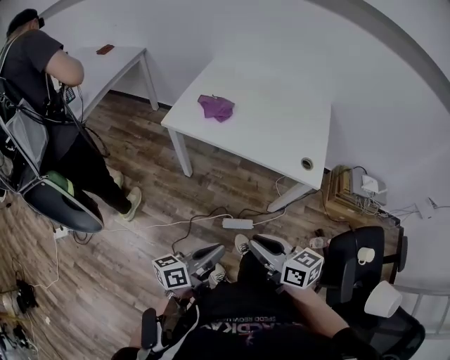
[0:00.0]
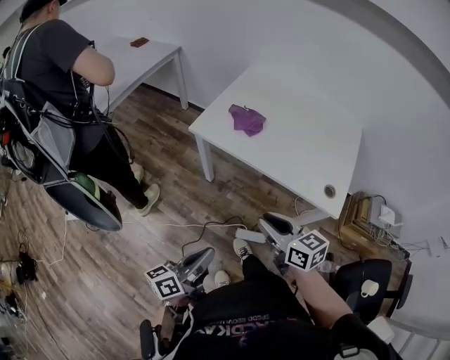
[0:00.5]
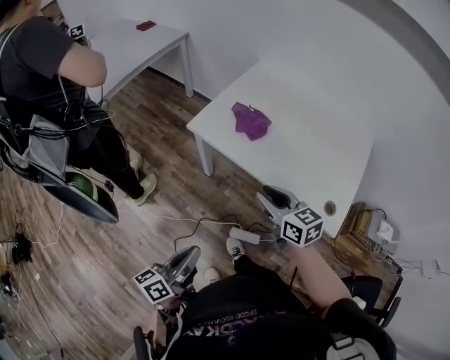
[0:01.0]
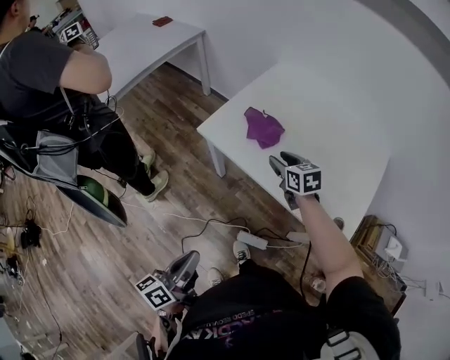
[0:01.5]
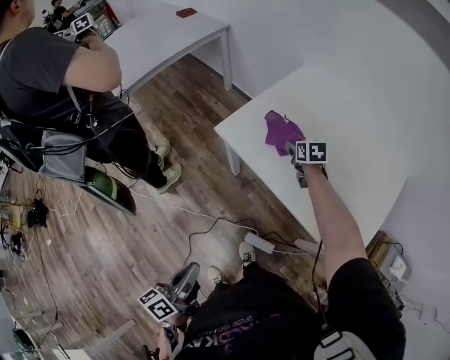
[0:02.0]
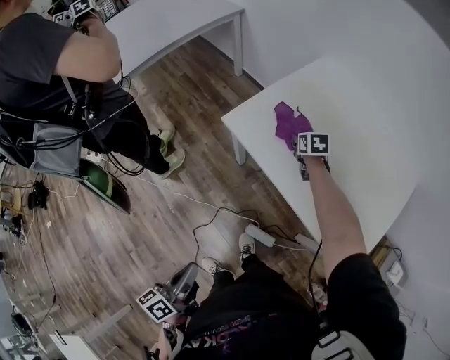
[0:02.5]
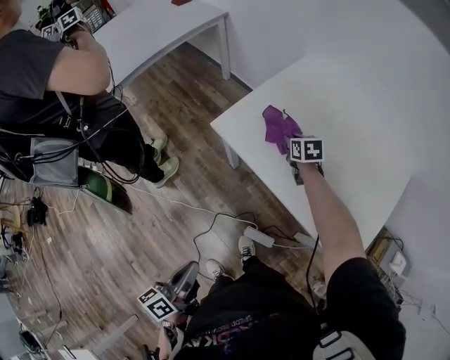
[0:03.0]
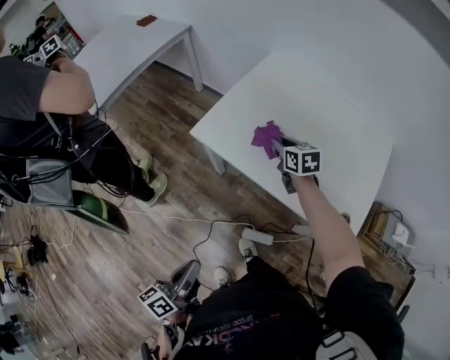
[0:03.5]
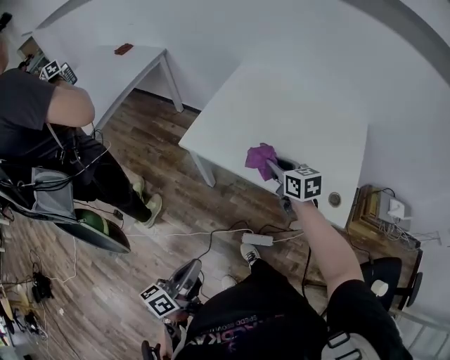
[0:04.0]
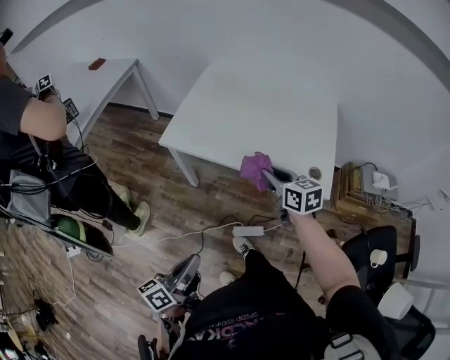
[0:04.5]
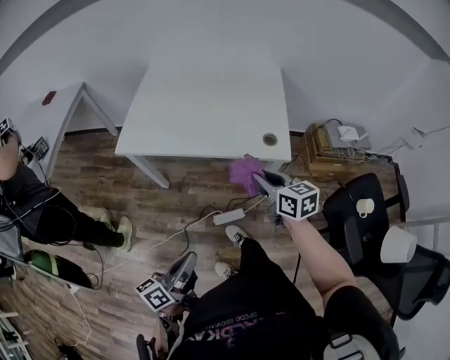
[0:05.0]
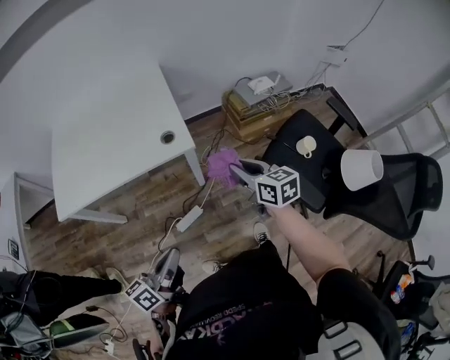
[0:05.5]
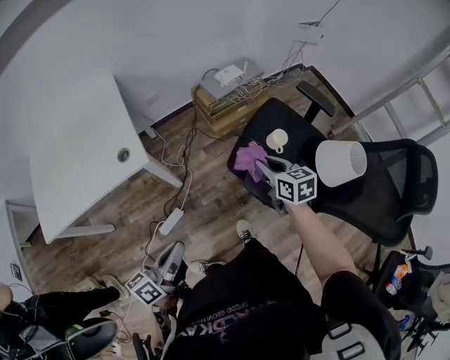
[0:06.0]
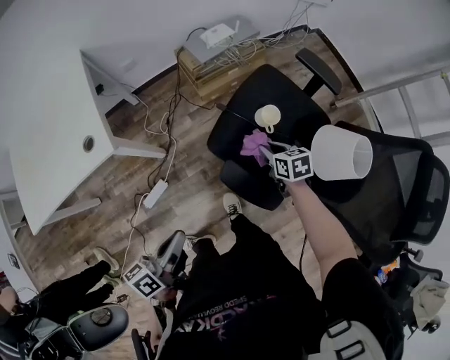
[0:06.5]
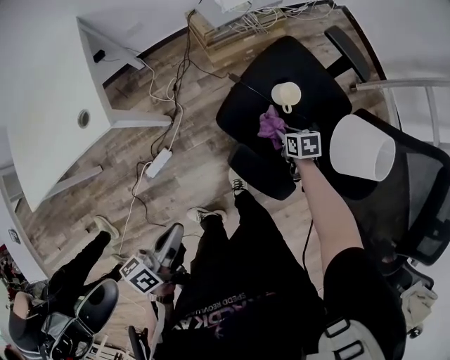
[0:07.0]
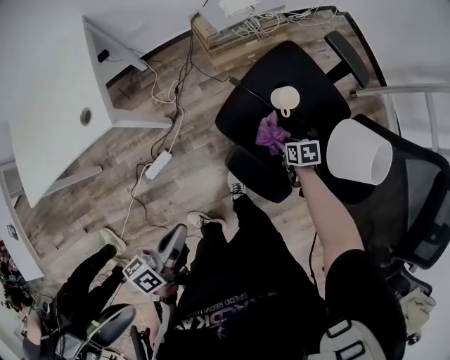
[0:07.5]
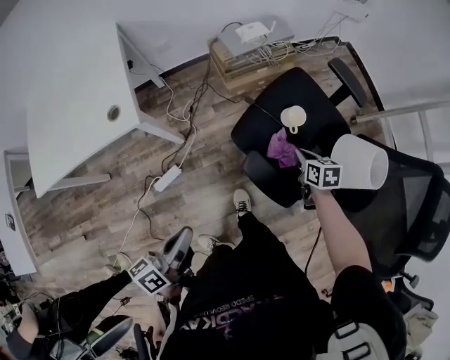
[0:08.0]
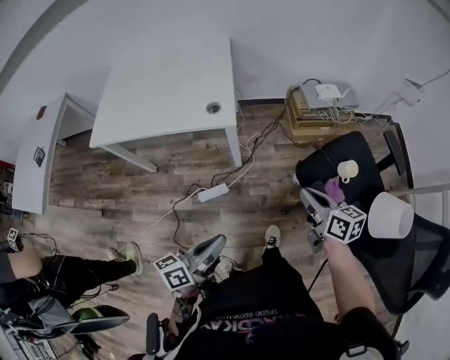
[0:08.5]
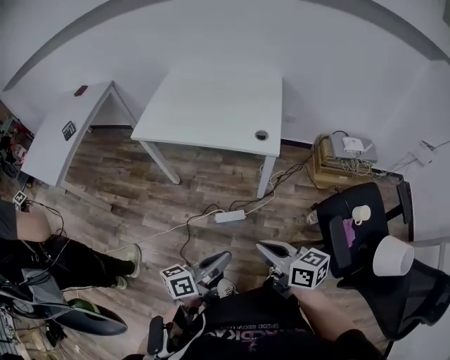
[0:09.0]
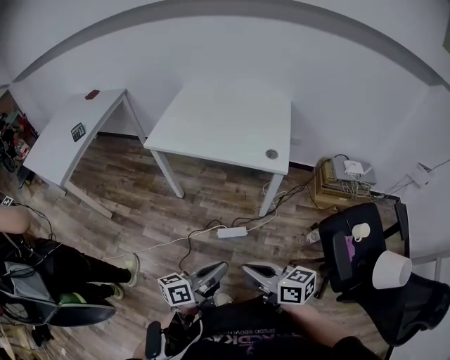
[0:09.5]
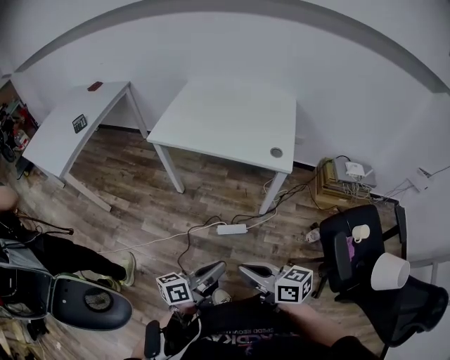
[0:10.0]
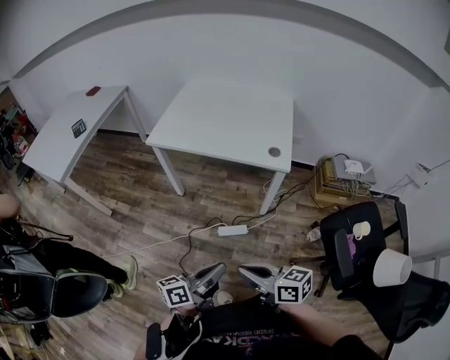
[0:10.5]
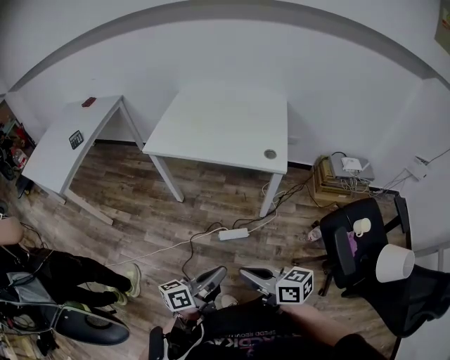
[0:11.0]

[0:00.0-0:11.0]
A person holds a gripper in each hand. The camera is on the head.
0:00.0 to 0:02.0: The right gripper travels forward by about 60 cm, turns by some 30 degrees, and opens up, while the left gripper goes some 15 cm forward and to the left, and swivels some 50 degrees.
0:02.0 to 0:03.5: The right gripper heads backward and upward, covering some 10 cm, and closes.
0:03.5 to 0:05.5: The right gripper changes place by roughly 60 cm, and rotates approximately 50 degrees, while the left gripper moves some 25 cm, and turns by roughly 60 degrees.
0:05.5 to 0:07.5: The right gripper is displaced to the right and downward by approximately 50 cm, tips its fingers downward by some 40 degrees, and opens up, while the left gripper is displaced to the right by some 30 cm.
0:07.5 to 0:09.0: The right gripper moves approximately 60 cm, tips its fingers upward by some 50 degrees, and closes up. The left gripper ends up about 25 cm from where it was, and changes its angle by approximately 30 degrees.
0:09.0 to 0:11.0: The left gripper moves to the left, some 10 cm, while the right gripper goes some 10 cm to the left and backward.

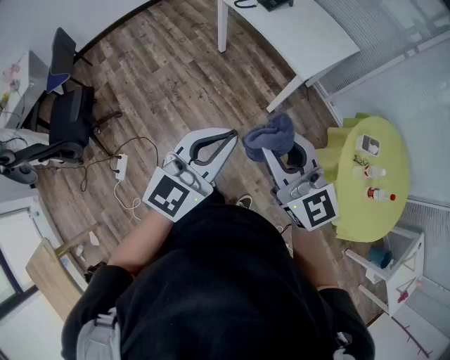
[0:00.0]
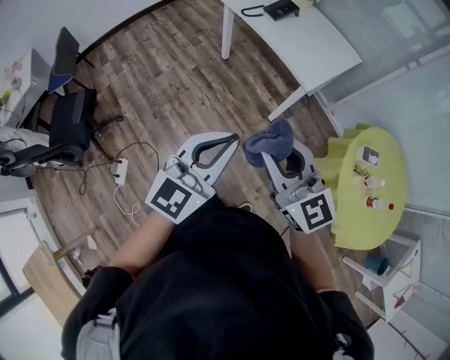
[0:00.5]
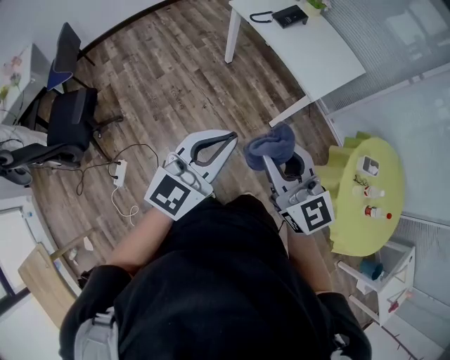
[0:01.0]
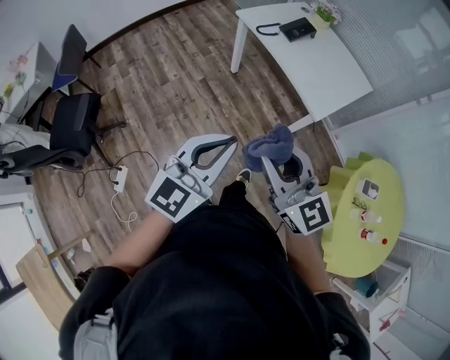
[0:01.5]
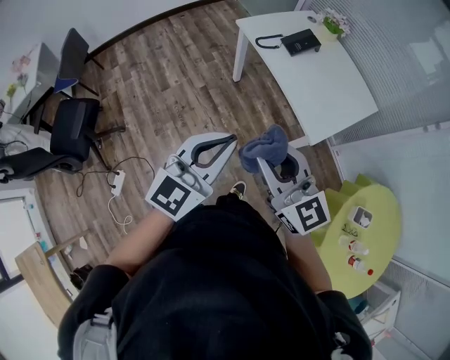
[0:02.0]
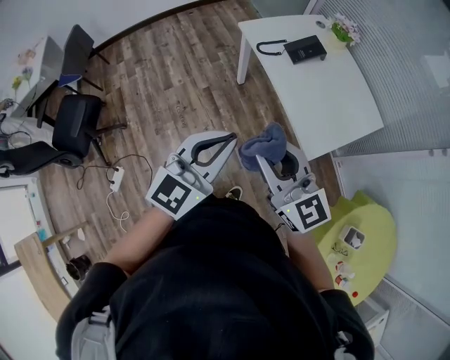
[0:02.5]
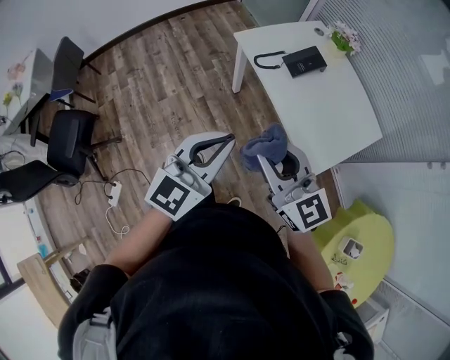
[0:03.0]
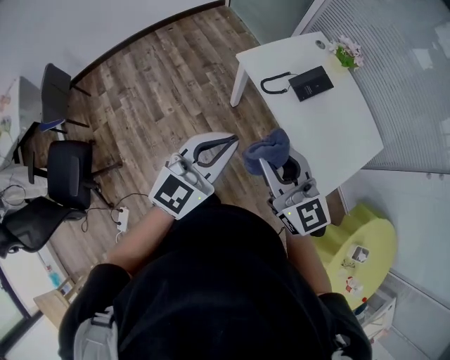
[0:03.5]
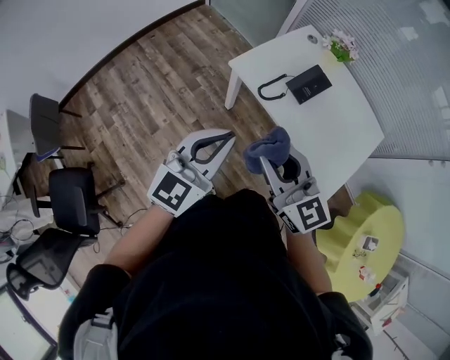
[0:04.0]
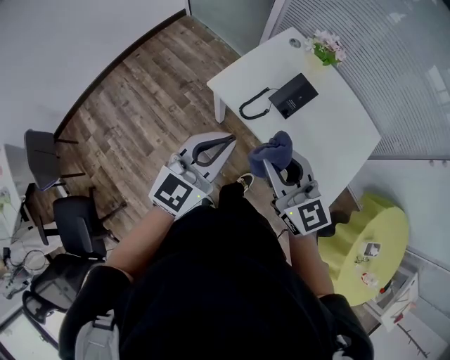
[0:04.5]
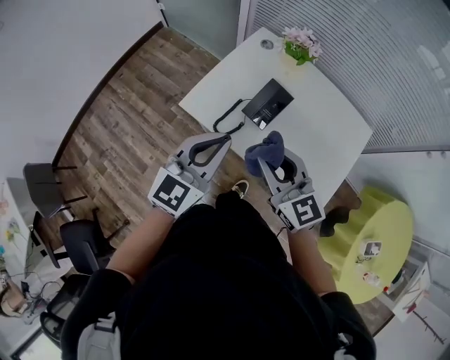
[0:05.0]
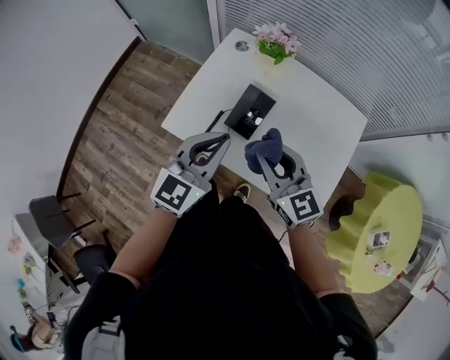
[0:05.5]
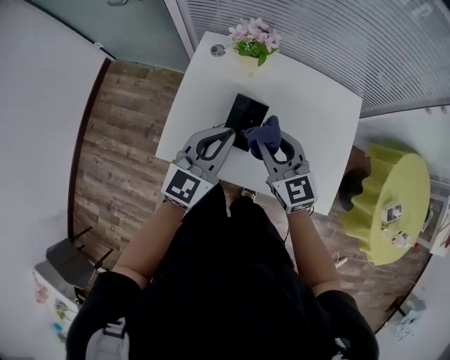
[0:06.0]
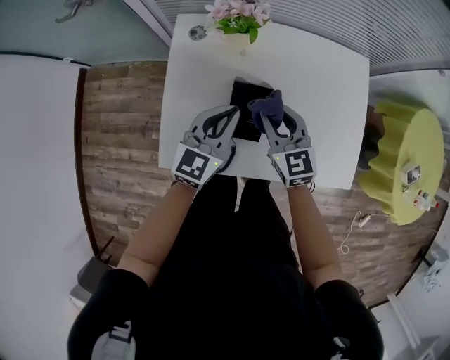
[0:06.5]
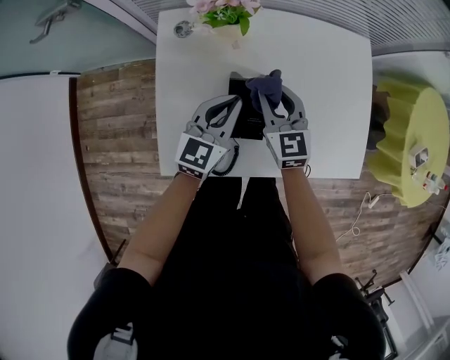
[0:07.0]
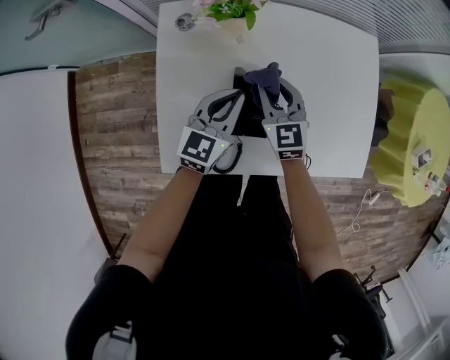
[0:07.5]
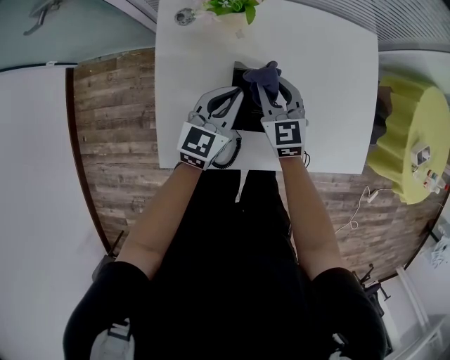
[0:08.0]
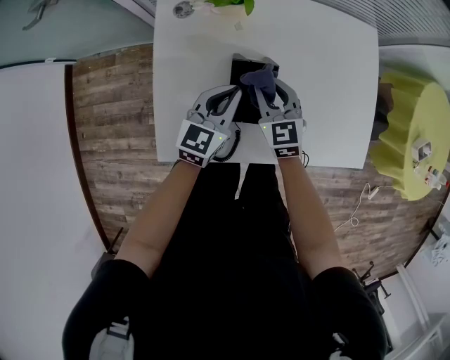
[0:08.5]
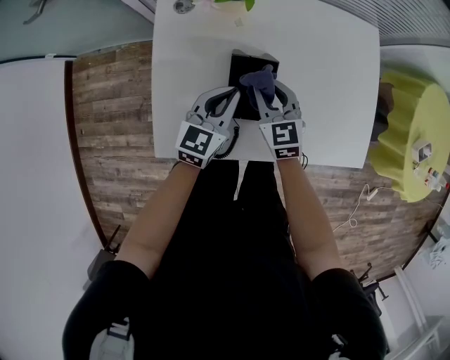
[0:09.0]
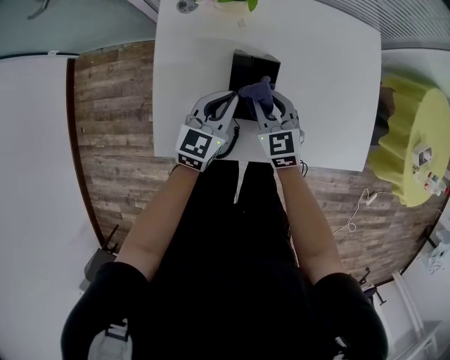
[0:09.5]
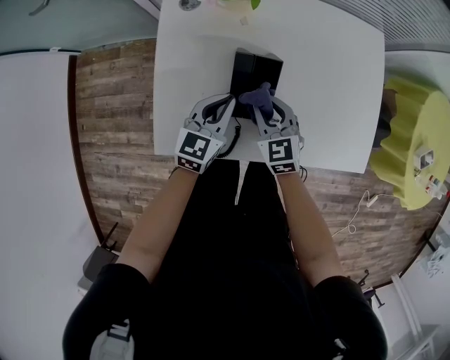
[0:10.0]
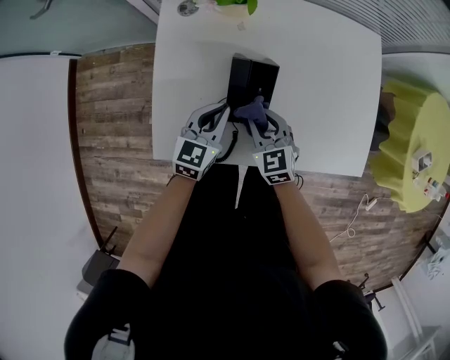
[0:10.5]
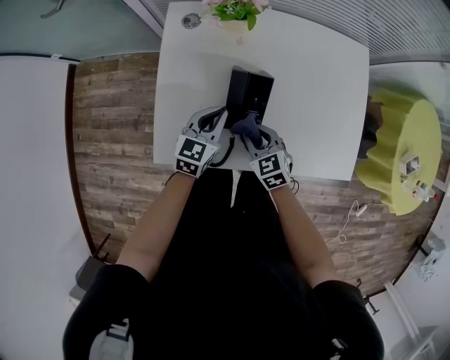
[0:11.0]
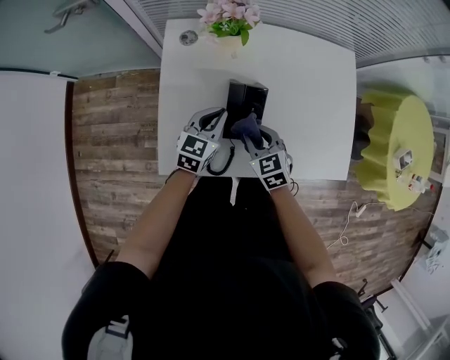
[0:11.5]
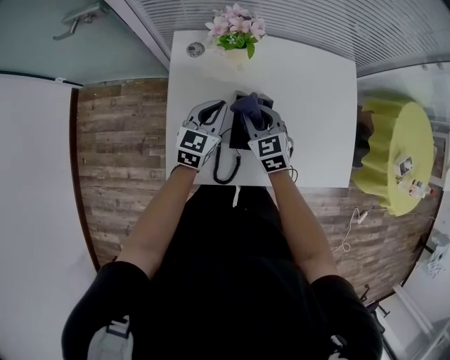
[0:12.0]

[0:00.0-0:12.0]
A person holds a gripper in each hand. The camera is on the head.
0:00.0 to 0:02.0: Both grippers travel together forward, about 25 cm.
0:02.0 to 0:04.0: The grippers both shift forward by some 35 cm.
0:04.0 to 0:06.0: The pair of grippers is taken some 40 cm. The left gripper swivels some 30 degrees; the right gripper turns by approximately 40 degrees.
0:06.0 to 0:08.0: The grippers both shift downward and forward by some 20 cm. The right gripper swivels roughly 30 degrees.
0:08.0 to 0:10.0: The left gripper heads backward, covering about 5 cm. Meanwhile the right gripper heads backward, covering about 10 cm.
0:10.0 to 0:12.0: The grippers both shift forward and upward by some 10 cm.

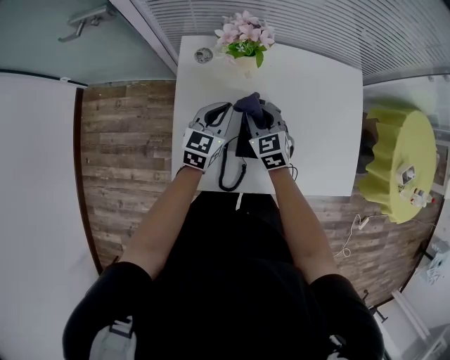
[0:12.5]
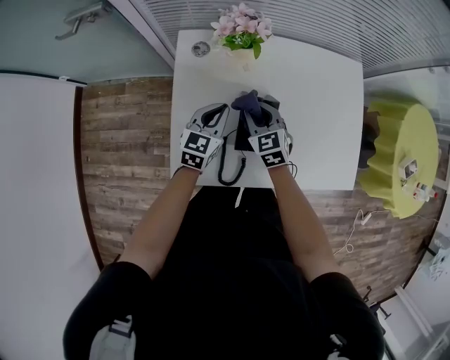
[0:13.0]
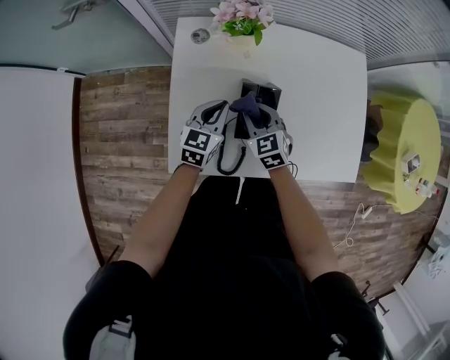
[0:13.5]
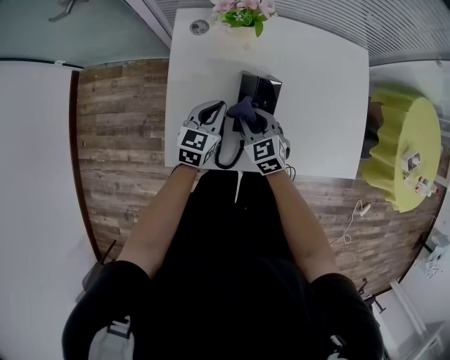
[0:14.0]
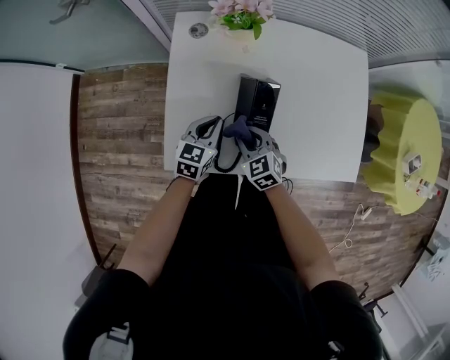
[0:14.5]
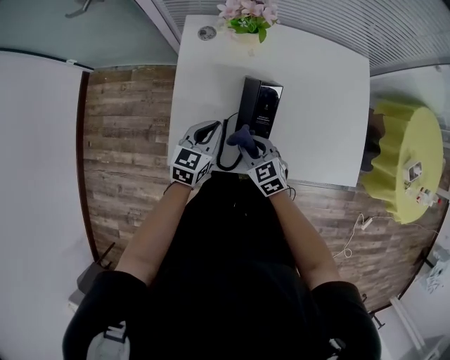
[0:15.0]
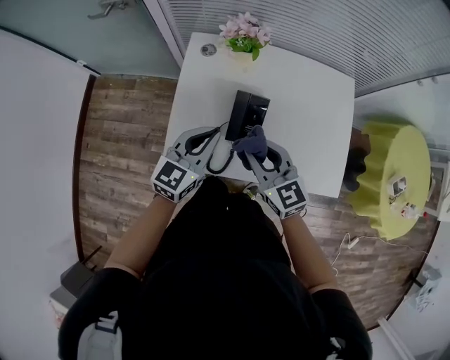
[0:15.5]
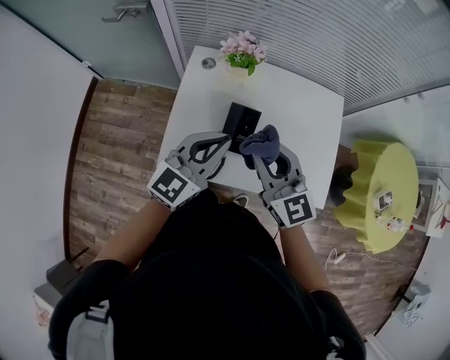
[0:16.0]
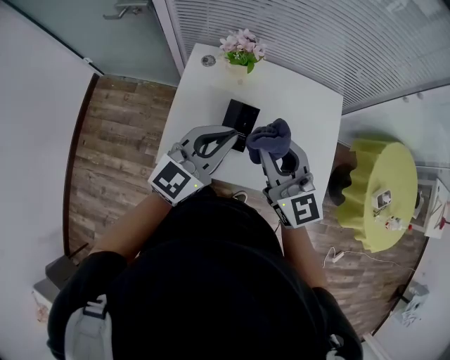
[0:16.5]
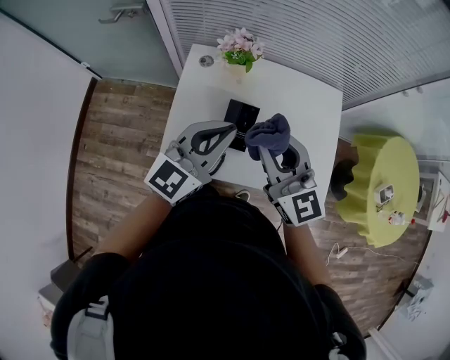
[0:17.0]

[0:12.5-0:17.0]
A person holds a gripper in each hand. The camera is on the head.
0:12.5 to 0:14.5: The two grippers go some 15 cm backward and downward.
0:14.5 to 0:17.0: Both grippers travel together upward, approximately 35 cm. The left gripper tilts its fingers approximately 30 degrees upward. The right gripper tips its fingers upward by some 40 degrees.
